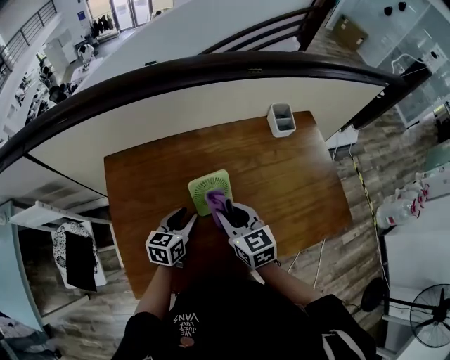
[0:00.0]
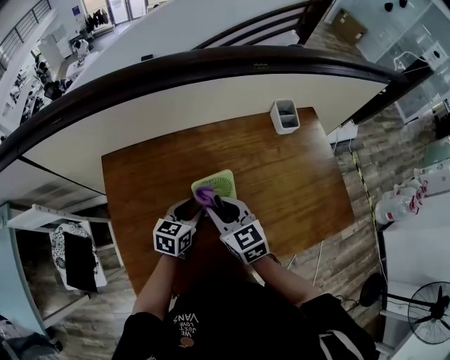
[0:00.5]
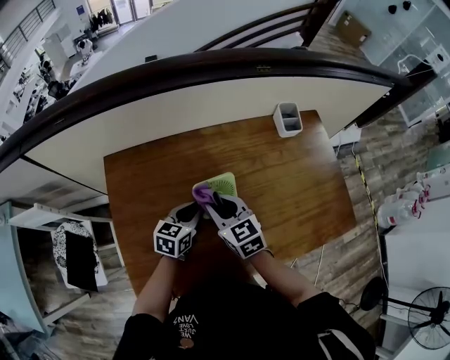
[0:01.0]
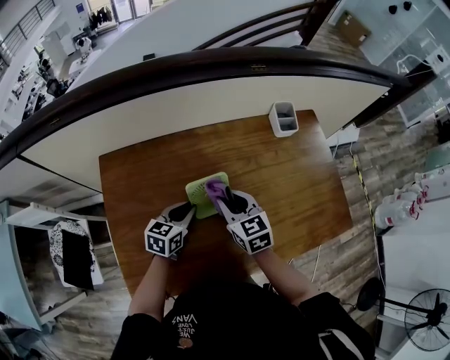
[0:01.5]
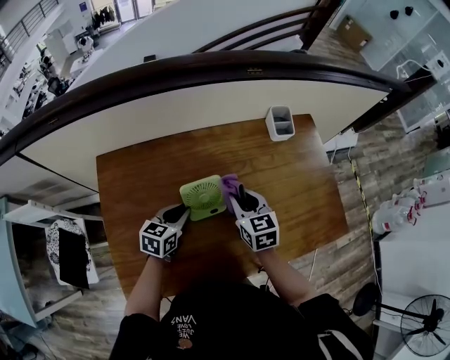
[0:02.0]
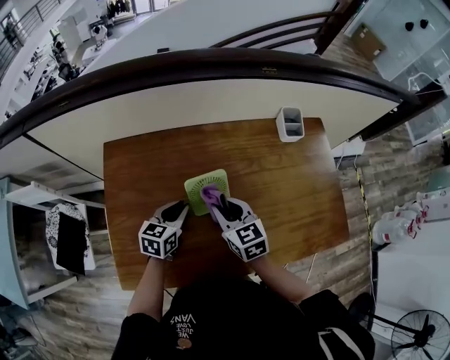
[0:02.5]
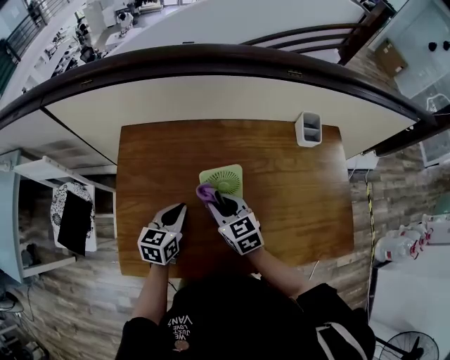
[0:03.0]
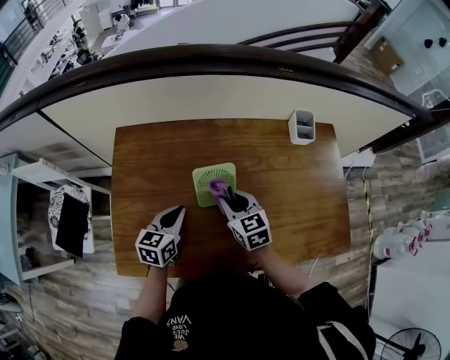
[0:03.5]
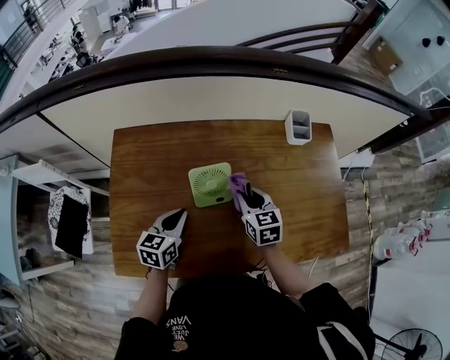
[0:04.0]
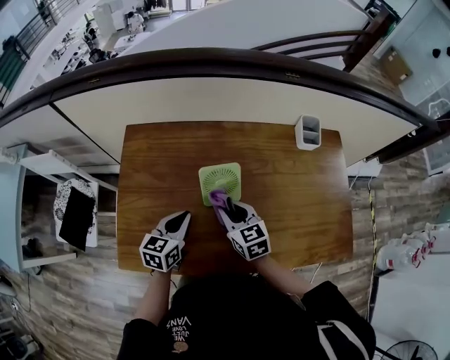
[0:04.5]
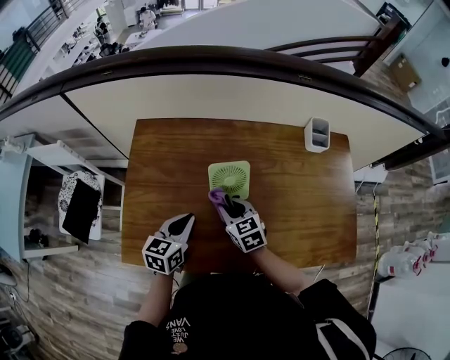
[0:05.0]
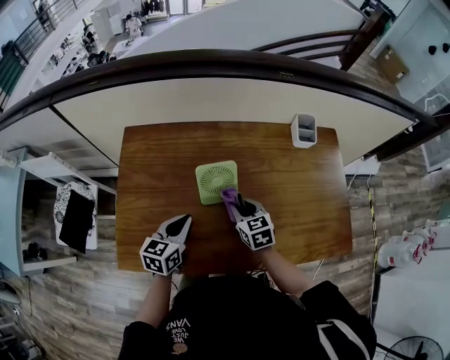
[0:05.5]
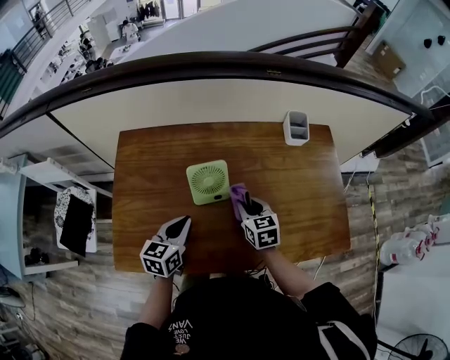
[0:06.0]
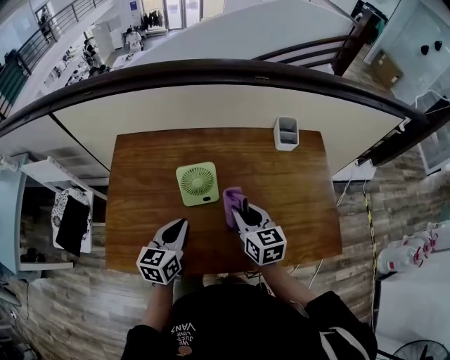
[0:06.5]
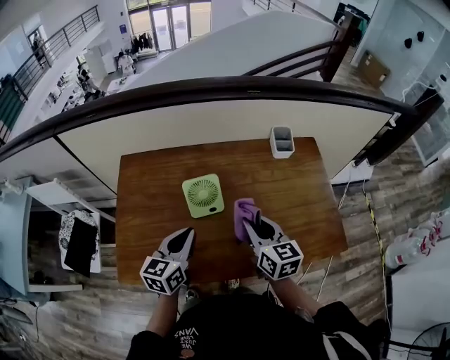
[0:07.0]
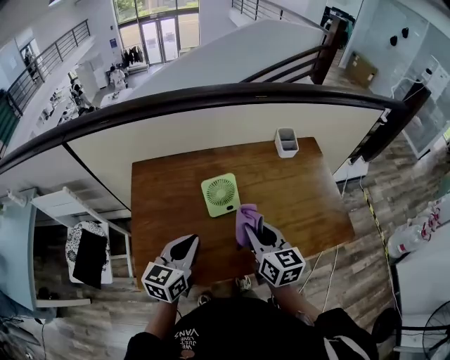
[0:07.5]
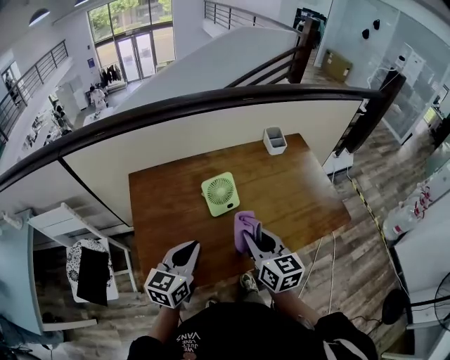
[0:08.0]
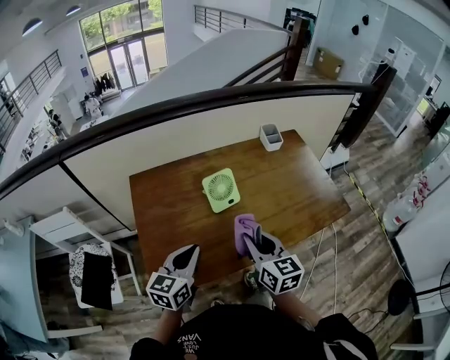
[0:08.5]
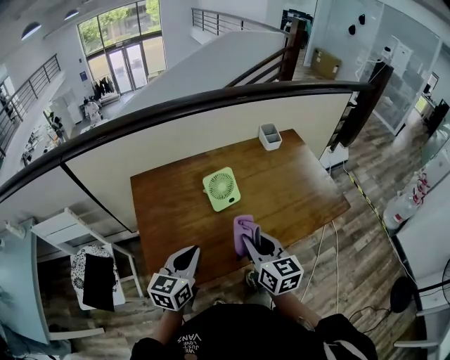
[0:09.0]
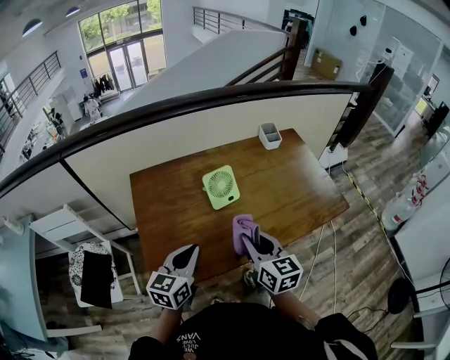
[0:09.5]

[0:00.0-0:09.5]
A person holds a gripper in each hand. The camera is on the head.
0.0 to 2.0 s: The right gripper travels forward and to the right by roughly 10 cm.
2.0 to 4.0 s: The right gripper travels to the left and back again, about 10 cm each way; the left gripper is displaced backward by some 5 cm.
5.5 to 7.5 s: The right gripper travels upward and backward by some 20 cm, and turns by some 30 degrees. The left gripper shifts about 15 cm upward and backward.
7.5 to 9.5 s: Both grippers move backward, roughly 10 cm.

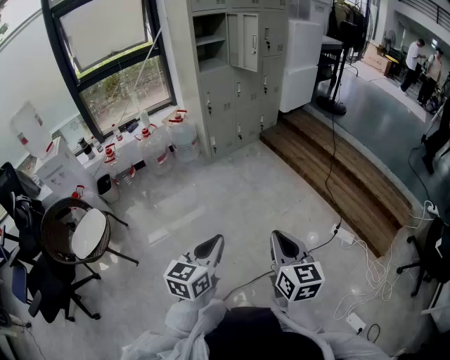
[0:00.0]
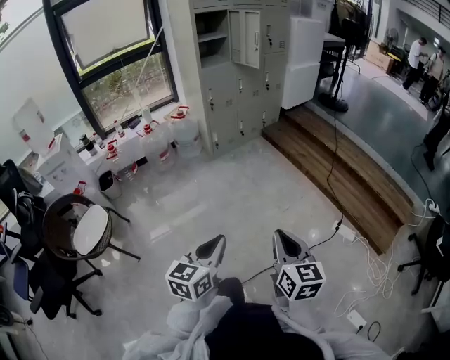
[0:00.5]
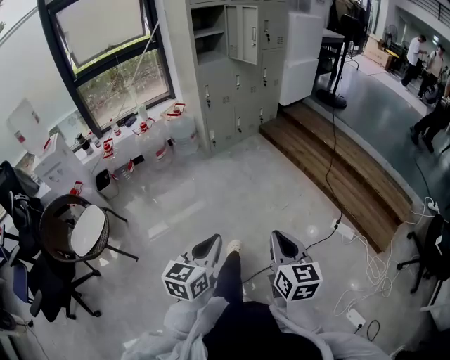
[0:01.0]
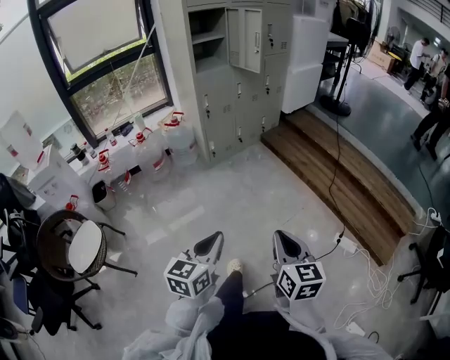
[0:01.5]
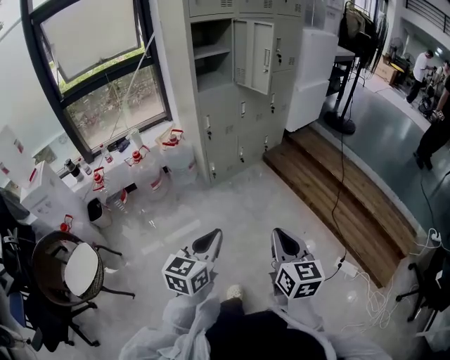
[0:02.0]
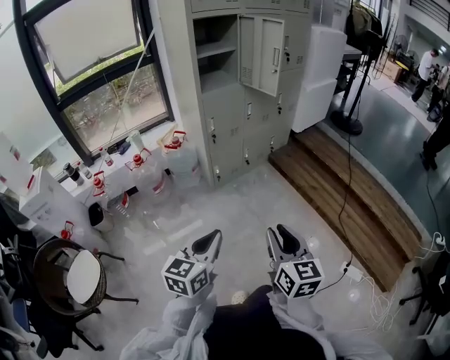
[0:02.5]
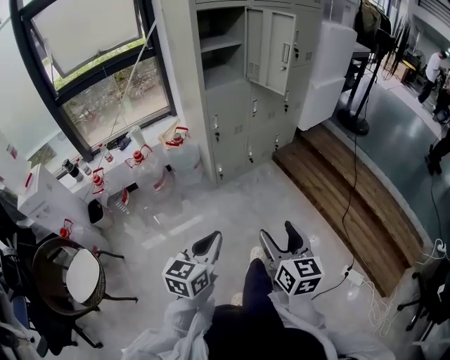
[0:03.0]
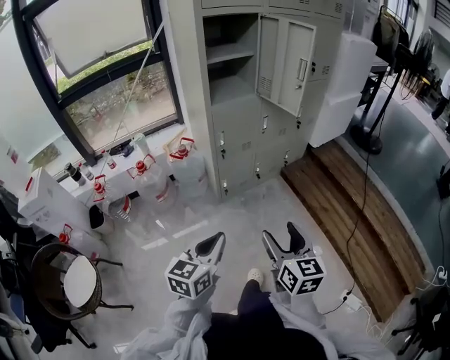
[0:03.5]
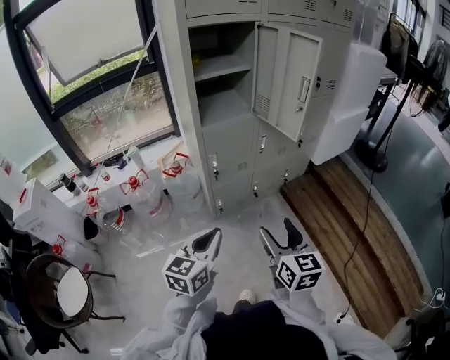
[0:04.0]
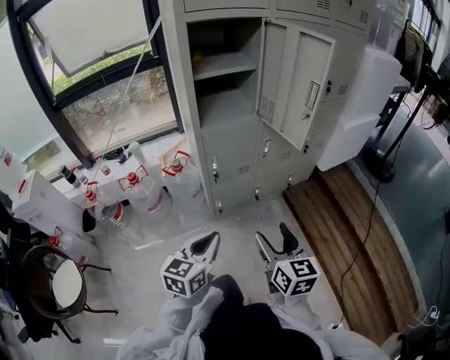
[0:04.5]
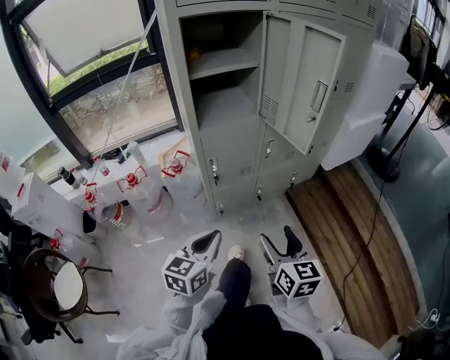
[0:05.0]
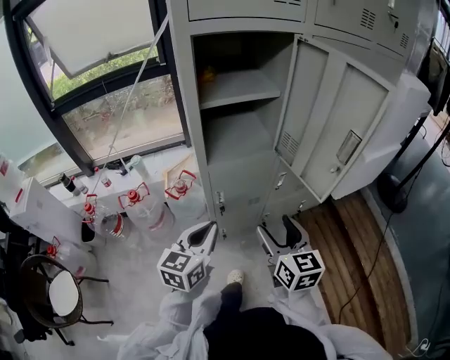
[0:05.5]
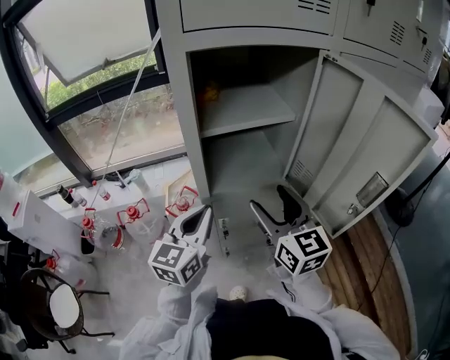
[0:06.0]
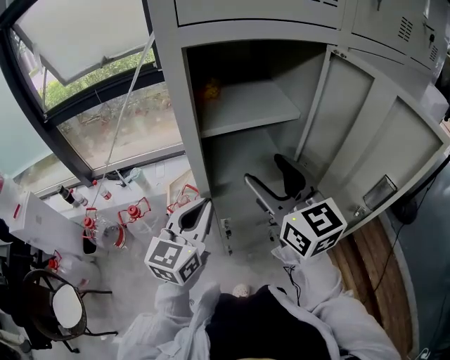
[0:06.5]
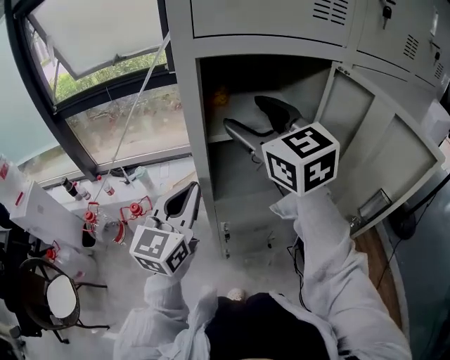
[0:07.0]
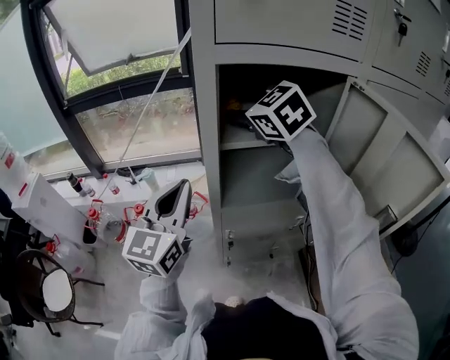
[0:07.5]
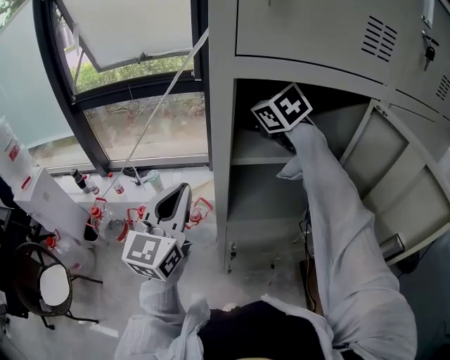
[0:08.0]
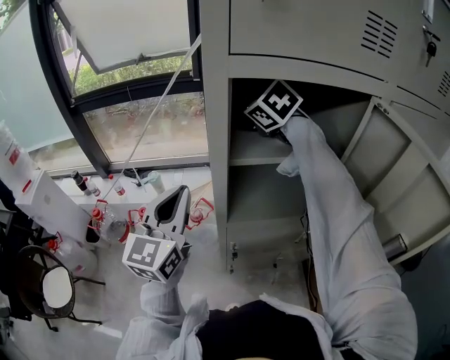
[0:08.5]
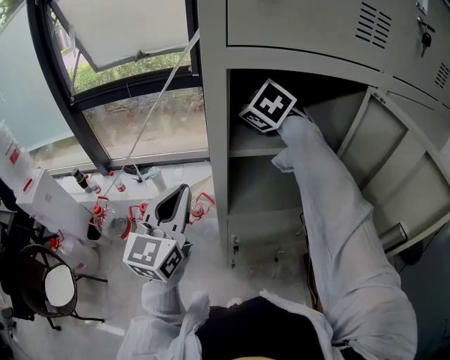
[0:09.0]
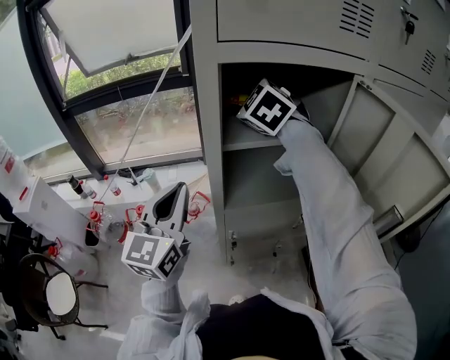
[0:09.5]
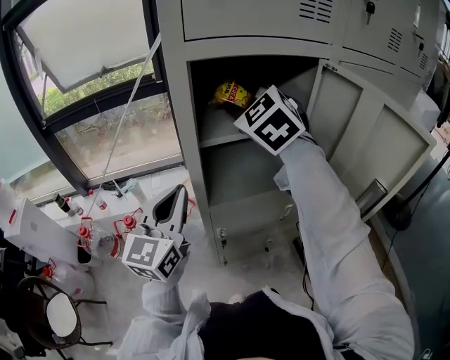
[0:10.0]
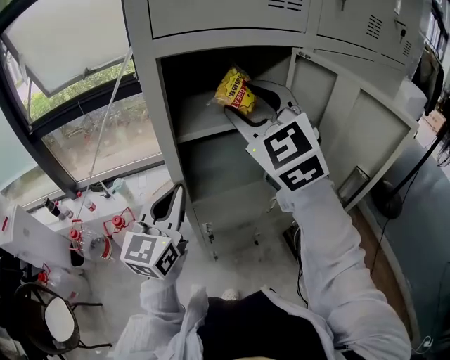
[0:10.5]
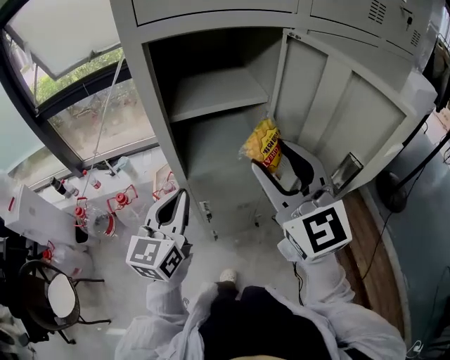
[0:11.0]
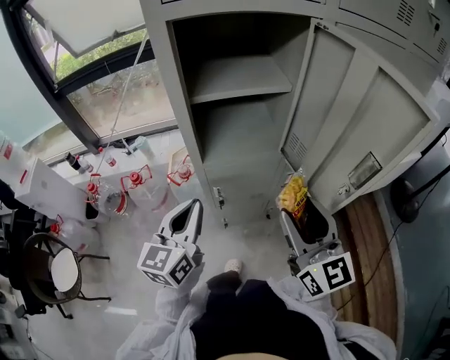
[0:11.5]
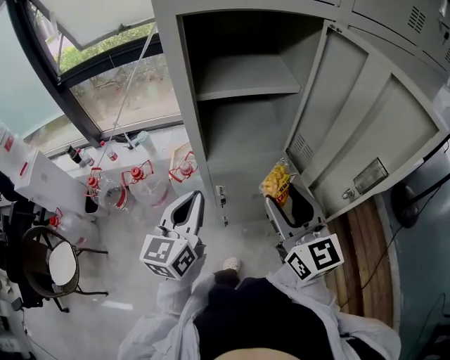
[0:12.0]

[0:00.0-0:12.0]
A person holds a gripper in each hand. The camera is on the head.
0.0 to 2.0 s: Both grippers travel together forward, approximately 30 cm.
2.0 to 4.0 s: The grippers both shift forward by approximately 40 cm. The right gripper opens its fingers.
4.0 to 6.0 s: Both grippers move forward, approximately 40 cm. The right gripper changes its angle by roughly 20 degrees.
6.0 to 8.0 s: The right gripper heads forward and upward, covering approximately 30 cm, and rotates about 40 degrees; the left gripper travels upward, to the left and forward by some 15 cm, and swivels approximately 20 degrees.
8.0 to 10.0 s: The right gripper shifts about 10 cm backward and to the right, rotates roughly 30 degrees, and closes its fingers. The left gripper shifts by some 5 cm.
10.0 to 12.0 s: The left gripper is displaced backward and downward by approximately 15 cm, while the right gripper moves backward, downward and to the right, roughly 30 cm, and twists about 50 degrees clockwise, seen from behind.

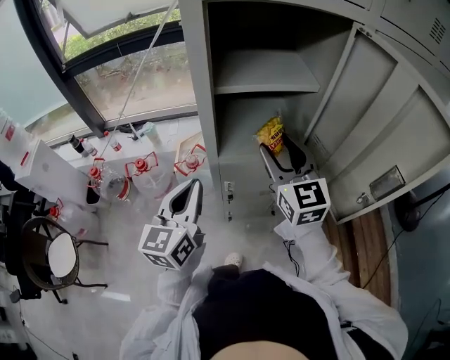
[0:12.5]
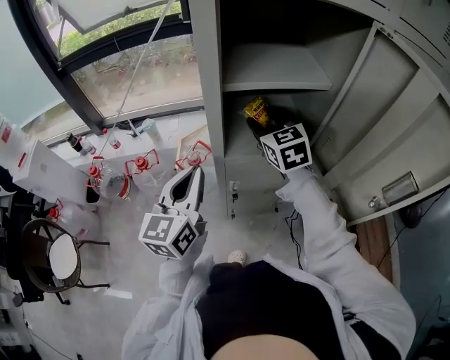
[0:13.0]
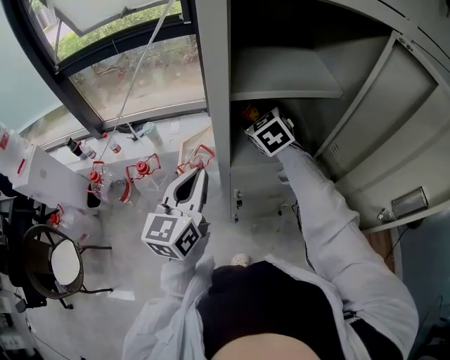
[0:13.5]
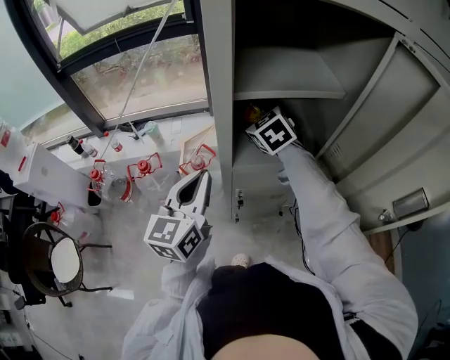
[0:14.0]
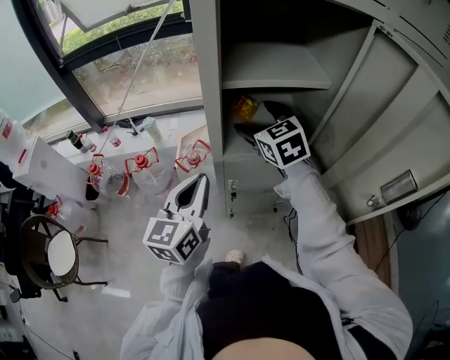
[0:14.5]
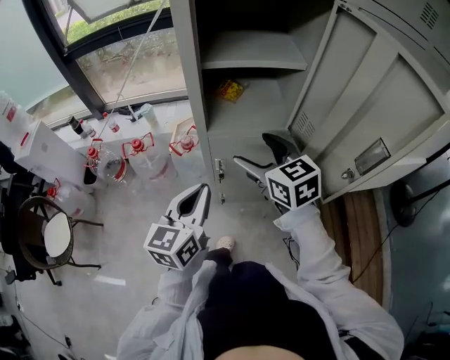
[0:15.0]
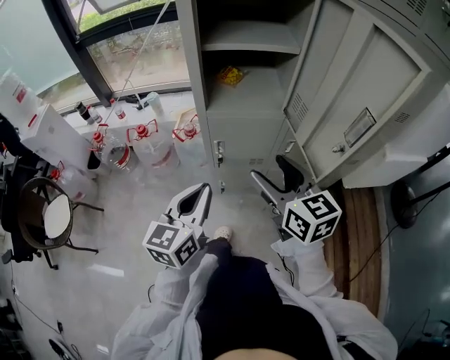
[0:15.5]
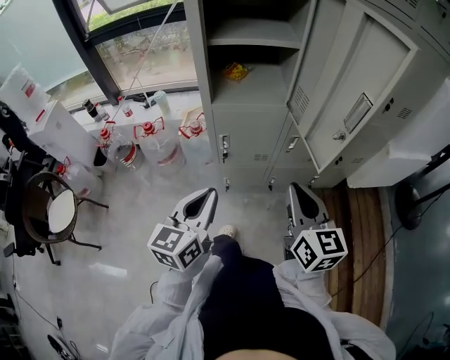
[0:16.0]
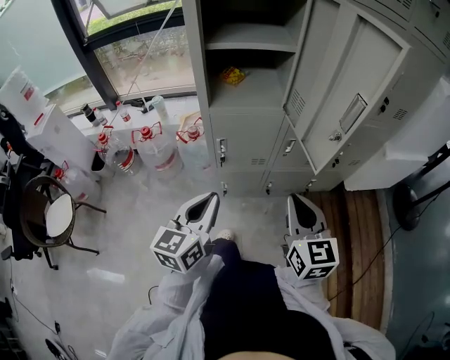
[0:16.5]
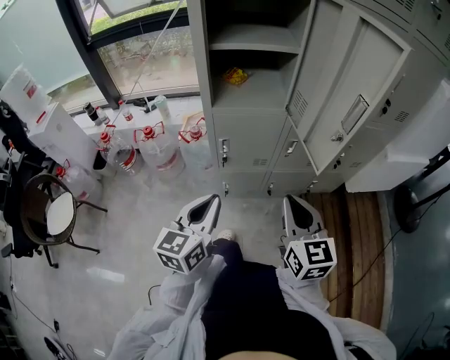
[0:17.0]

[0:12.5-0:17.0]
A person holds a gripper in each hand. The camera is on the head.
12.5 to 14.5 s: The right gripper moves forward and to the left, about 15 cm, swivels about 20 degrees, and opens.
14.5 to 17.0 s: The left gripper heads backward and to the right, covering some 25 cm. Meanwhile the right gripper goes roughly 40 cm backward and to the right, changes its angle by about 20 degrees, and closes.

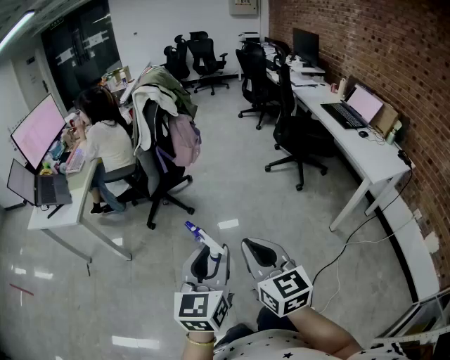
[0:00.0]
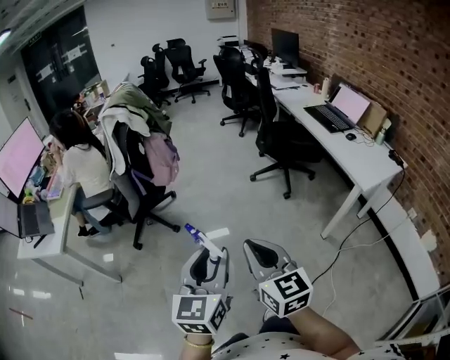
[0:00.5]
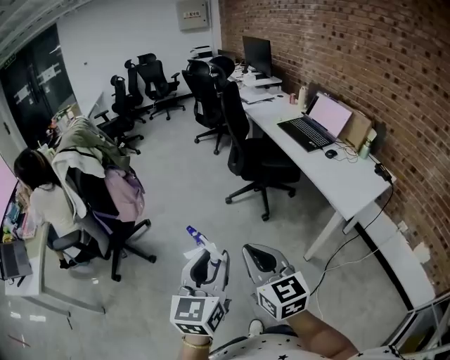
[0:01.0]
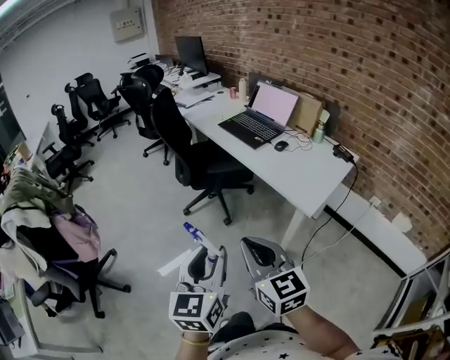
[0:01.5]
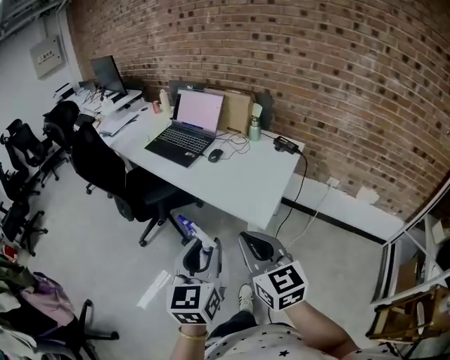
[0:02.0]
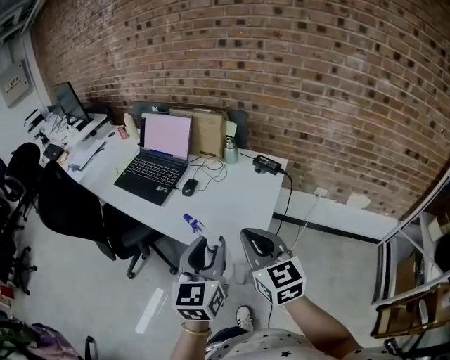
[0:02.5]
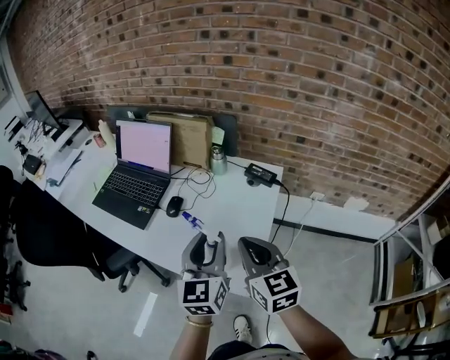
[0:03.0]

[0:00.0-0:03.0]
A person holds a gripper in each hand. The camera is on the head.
0.0 to 1.5 s: The two grippers travel together, some 50 cm. The left gripper rotates approximately 30 degrees. The right gripper swivels some 30 degrees.
1.5 to 3.0 s: Both grippers are carried approximately 50 cm. The left gripper changes its angle by approximately 30 degrees; the right gripper swivels approximately 40 degrees.
